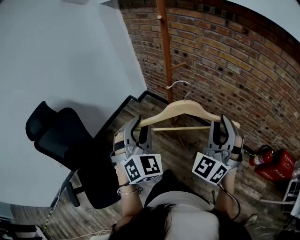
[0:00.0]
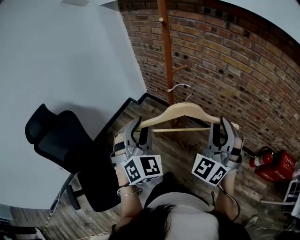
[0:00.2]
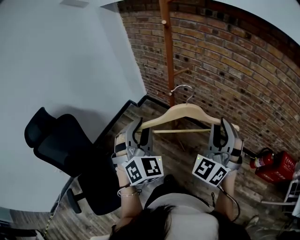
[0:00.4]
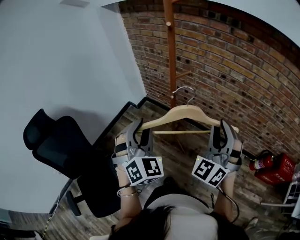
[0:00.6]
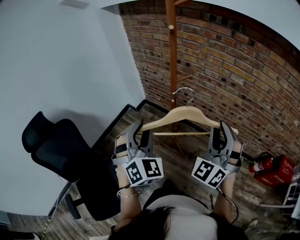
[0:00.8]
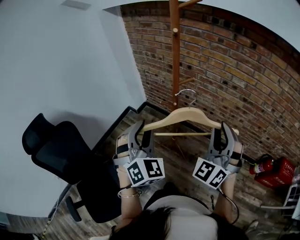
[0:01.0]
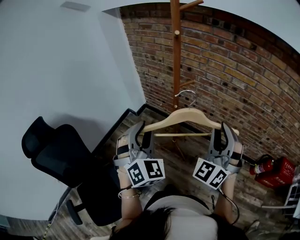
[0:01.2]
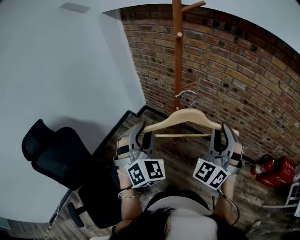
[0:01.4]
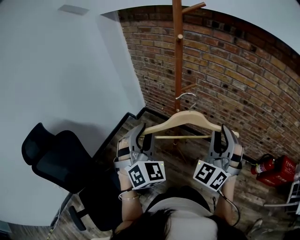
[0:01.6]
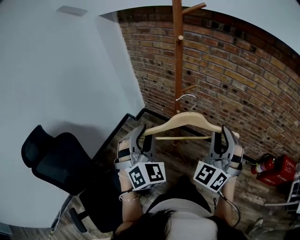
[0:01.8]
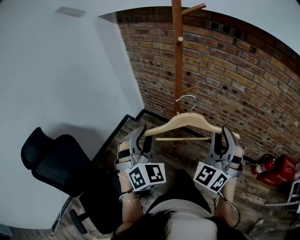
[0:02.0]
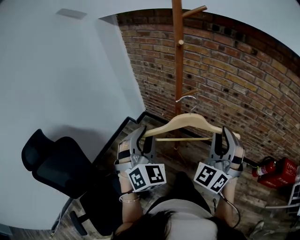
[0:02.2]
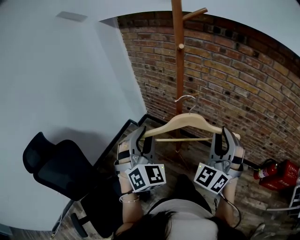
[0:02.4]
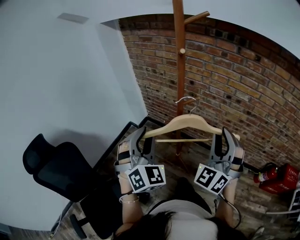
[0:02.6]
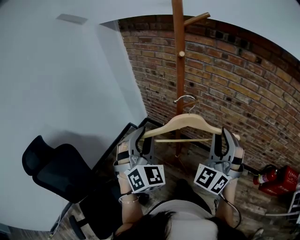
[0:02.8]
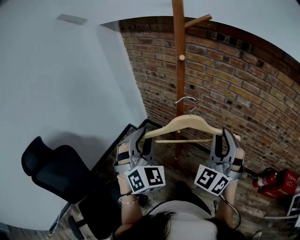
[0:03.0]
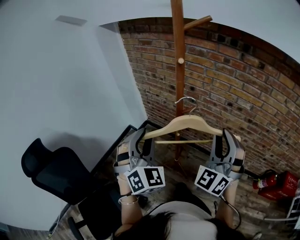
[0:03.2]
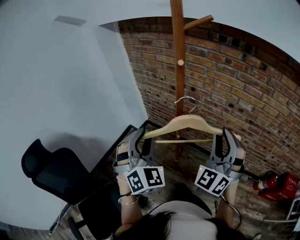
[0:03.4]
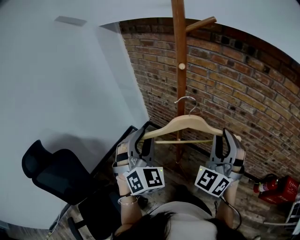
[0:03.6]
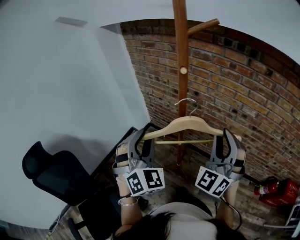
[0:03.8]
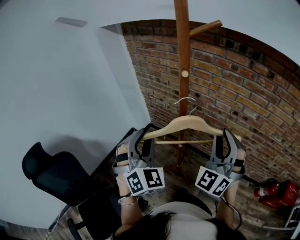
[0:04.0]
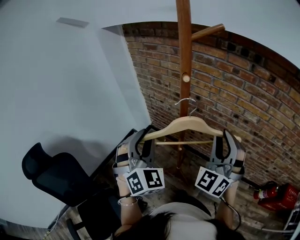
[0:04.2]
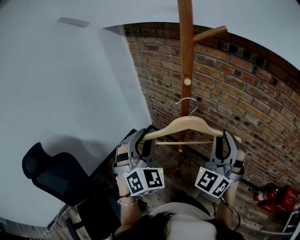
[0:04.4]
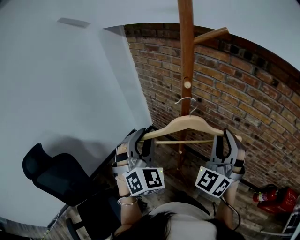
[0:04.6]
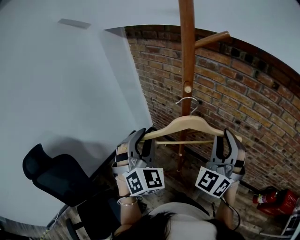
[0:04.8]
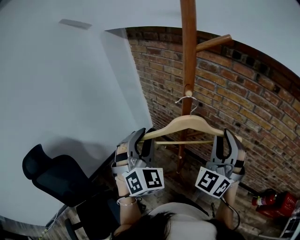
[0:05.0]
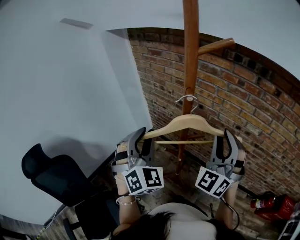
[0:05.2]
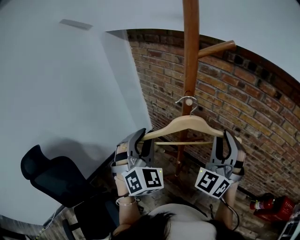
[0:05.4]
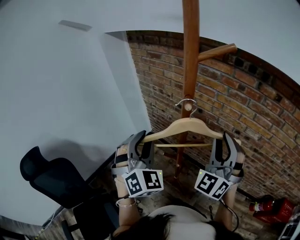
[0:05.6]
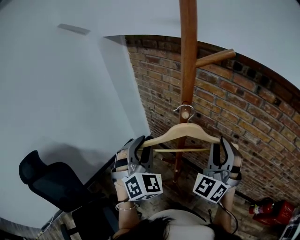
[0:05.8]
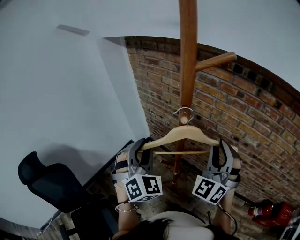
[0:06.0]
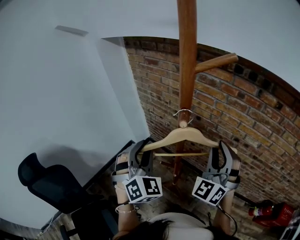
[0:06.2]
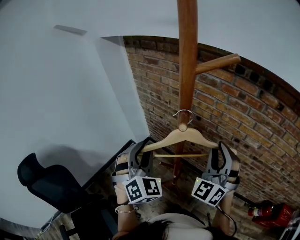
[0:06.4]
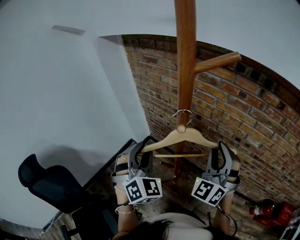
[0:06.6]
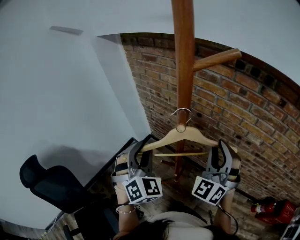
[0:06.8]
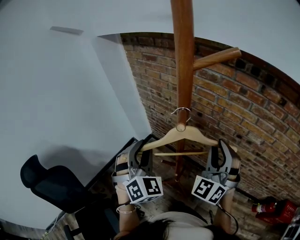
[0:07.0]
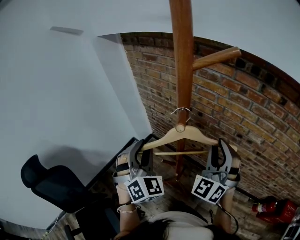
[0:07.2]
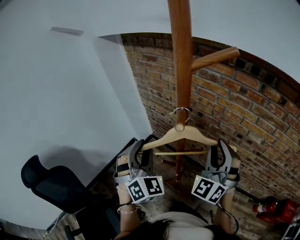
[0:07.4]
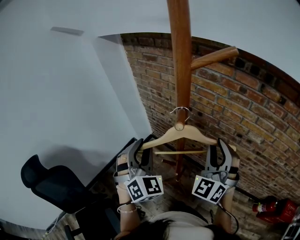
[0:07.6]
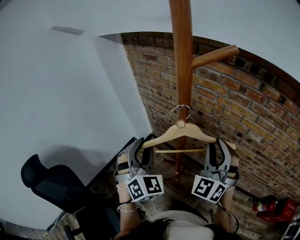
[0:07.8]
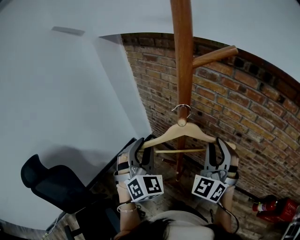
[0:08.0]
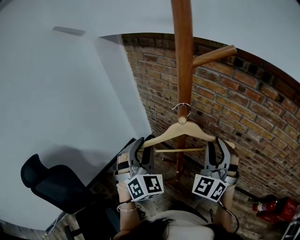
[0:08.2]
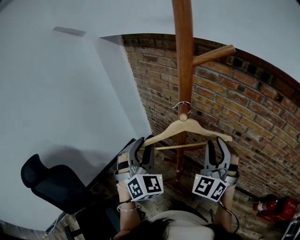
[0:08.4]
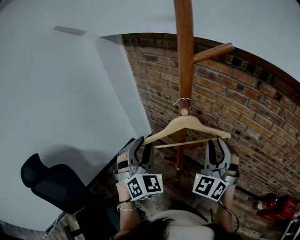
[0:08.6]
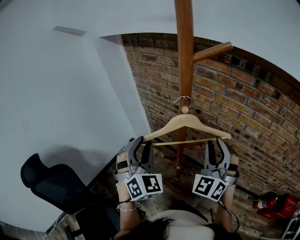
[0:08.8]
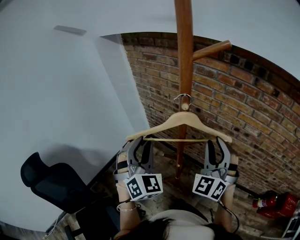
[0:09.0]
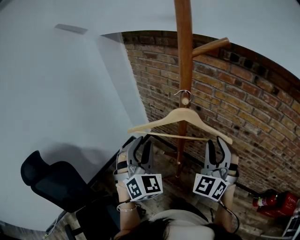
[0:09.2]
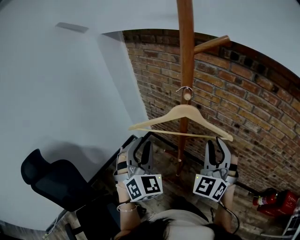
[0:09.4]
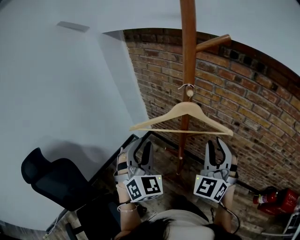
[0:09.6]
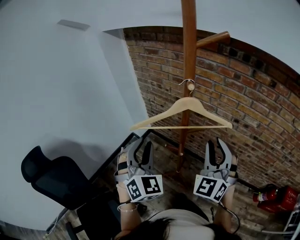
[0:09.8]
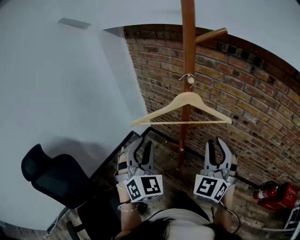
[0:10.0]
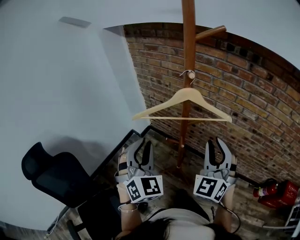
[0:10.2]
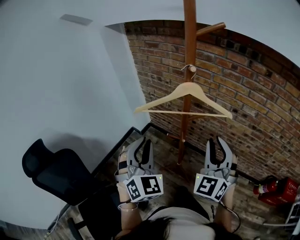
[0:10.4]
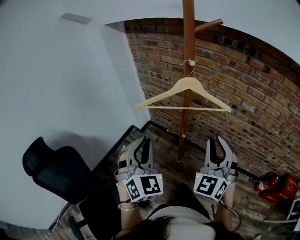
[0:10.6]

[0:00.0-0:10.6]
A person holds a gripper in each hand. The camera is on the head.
0:00.0 to 0:01.6: The left gripper moves forward and to the left, about 10 cm, while the right gripper heads to the left and forward, covering approximately 10 cm.
0:01.6 to 0:03.0: The grippers both shift forward by some 10 cm.
0:03.0 to 0:04.6: Both grippers move forward, roughly 10 cm.
0:04.6 to 0:06.0: Both grippers travel together forward, about 5 cm.
0:06.0 to 0:09.0: There are only small adjustments of the grippers.
0:09.0 to 0:10.6: The grippers both shift backward by some 15 cm.

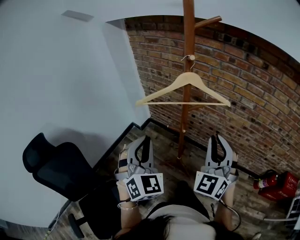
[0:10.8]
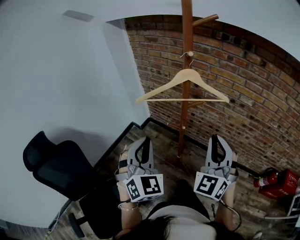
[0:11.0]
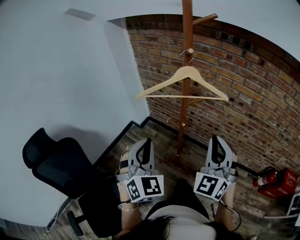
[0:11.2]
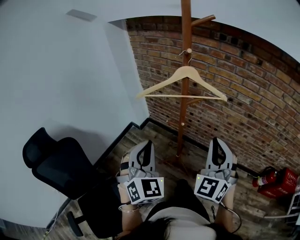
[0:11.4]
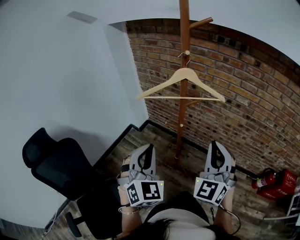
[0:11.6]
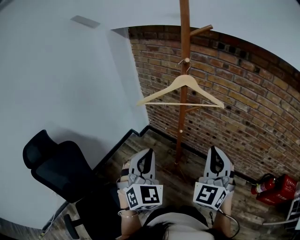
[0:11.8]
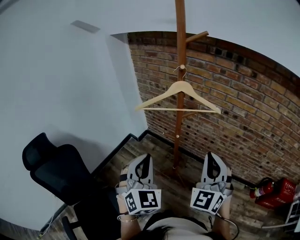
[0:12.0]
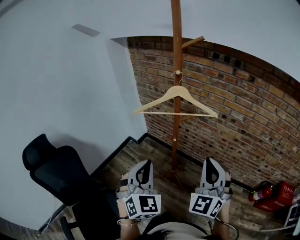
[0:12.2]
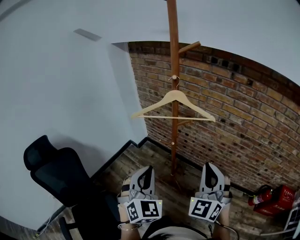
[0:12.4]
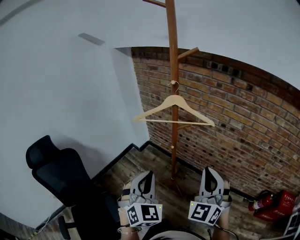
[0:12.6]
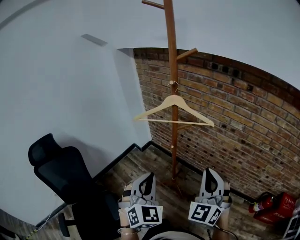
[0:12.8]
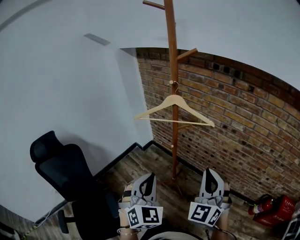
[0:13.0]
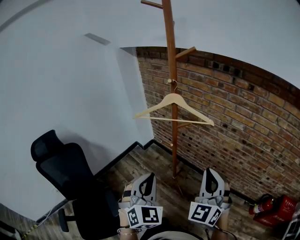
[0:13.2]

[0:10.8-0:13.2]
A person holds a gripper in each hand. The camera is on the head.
0:10.8 to 0:12.0: The grippers both shift backward by about 5 cm.
0:12.0 to 0:13.2: The left gripper travels to the right and backward by approximately 10 cm. Meanwhile the right gripper goes some 5 cm to the right.

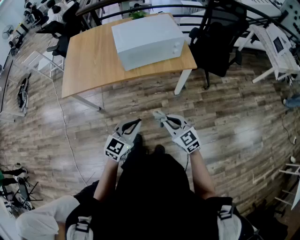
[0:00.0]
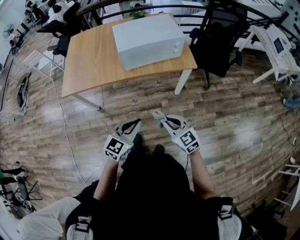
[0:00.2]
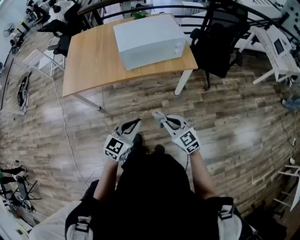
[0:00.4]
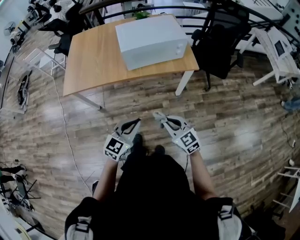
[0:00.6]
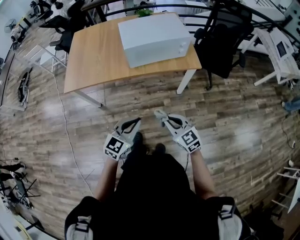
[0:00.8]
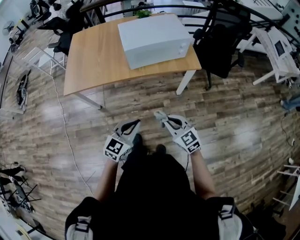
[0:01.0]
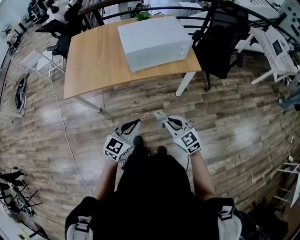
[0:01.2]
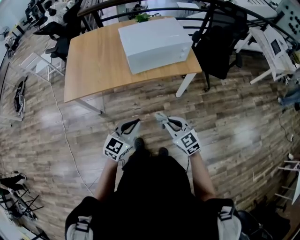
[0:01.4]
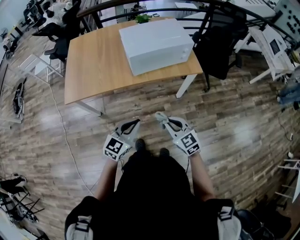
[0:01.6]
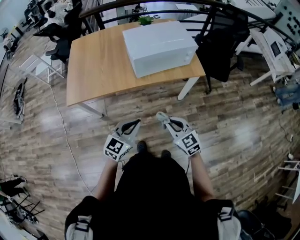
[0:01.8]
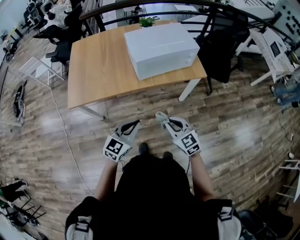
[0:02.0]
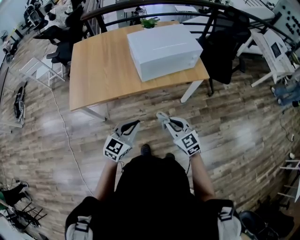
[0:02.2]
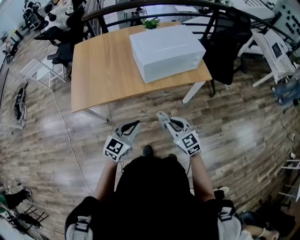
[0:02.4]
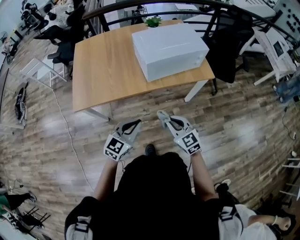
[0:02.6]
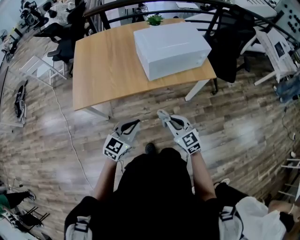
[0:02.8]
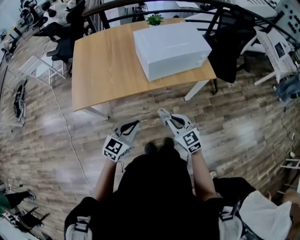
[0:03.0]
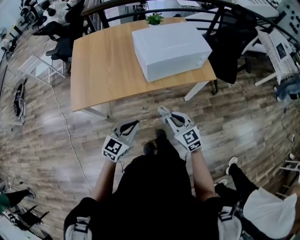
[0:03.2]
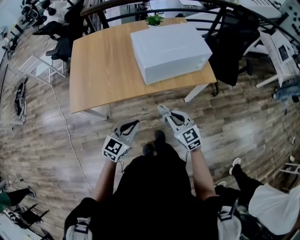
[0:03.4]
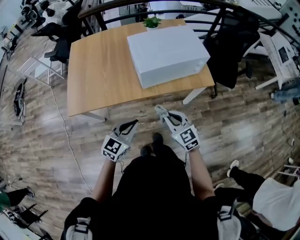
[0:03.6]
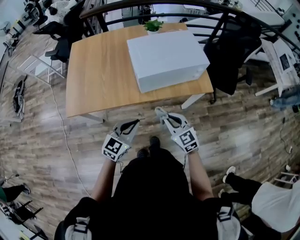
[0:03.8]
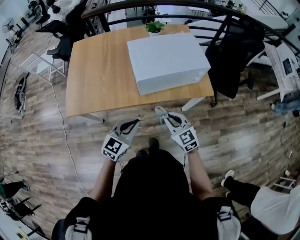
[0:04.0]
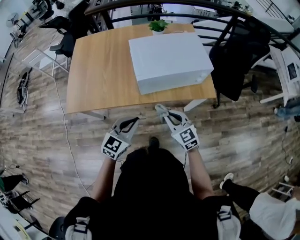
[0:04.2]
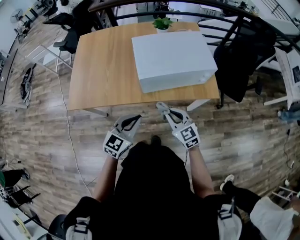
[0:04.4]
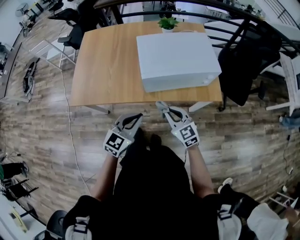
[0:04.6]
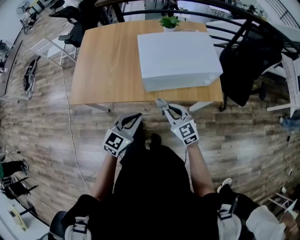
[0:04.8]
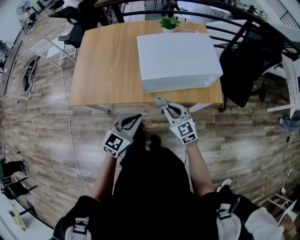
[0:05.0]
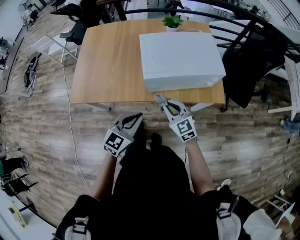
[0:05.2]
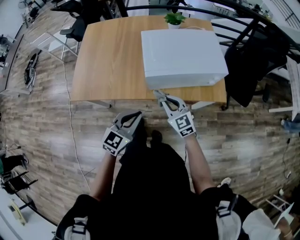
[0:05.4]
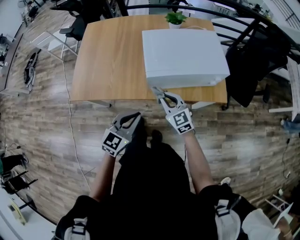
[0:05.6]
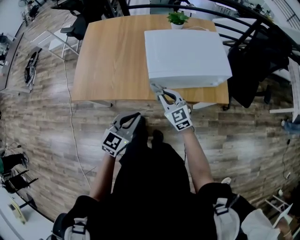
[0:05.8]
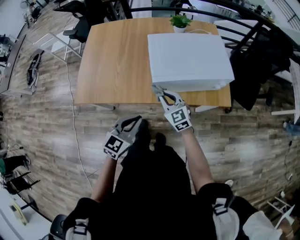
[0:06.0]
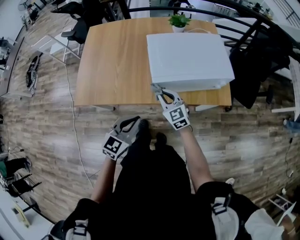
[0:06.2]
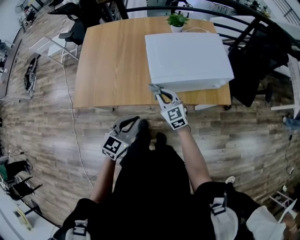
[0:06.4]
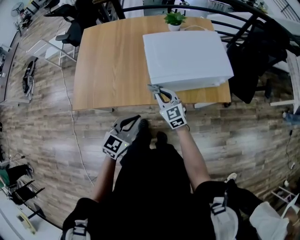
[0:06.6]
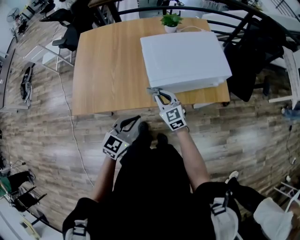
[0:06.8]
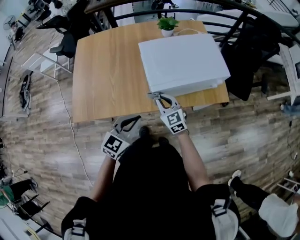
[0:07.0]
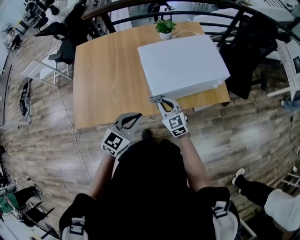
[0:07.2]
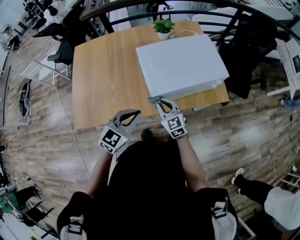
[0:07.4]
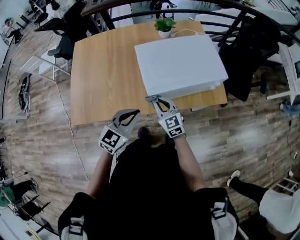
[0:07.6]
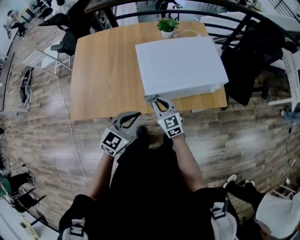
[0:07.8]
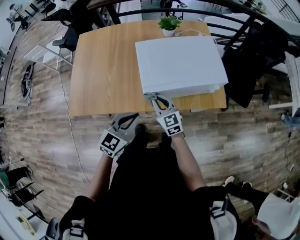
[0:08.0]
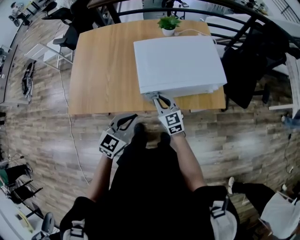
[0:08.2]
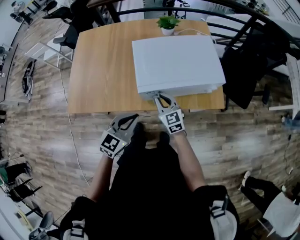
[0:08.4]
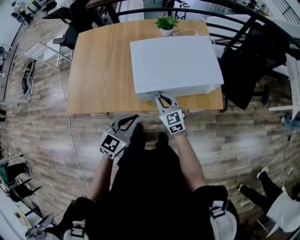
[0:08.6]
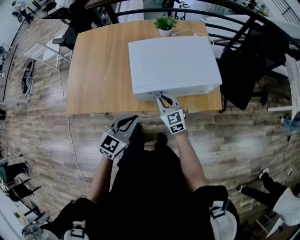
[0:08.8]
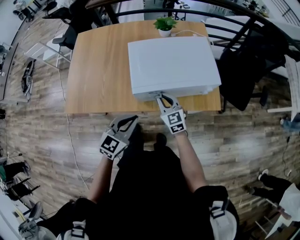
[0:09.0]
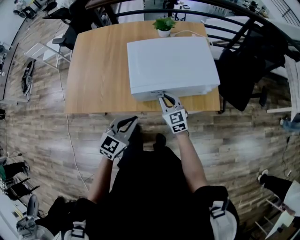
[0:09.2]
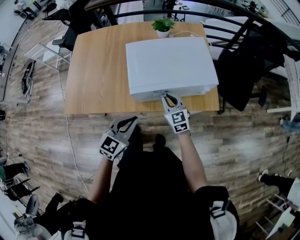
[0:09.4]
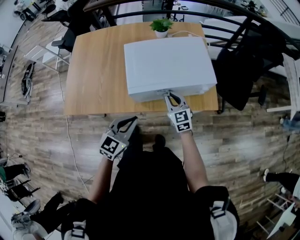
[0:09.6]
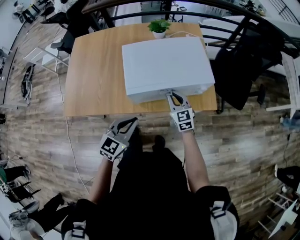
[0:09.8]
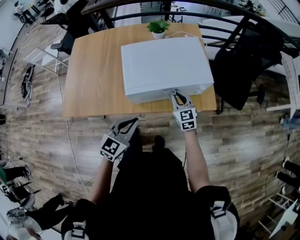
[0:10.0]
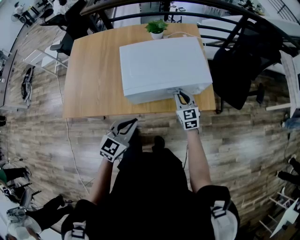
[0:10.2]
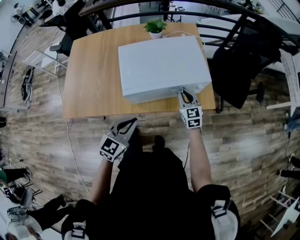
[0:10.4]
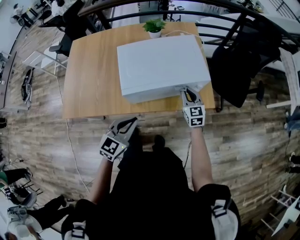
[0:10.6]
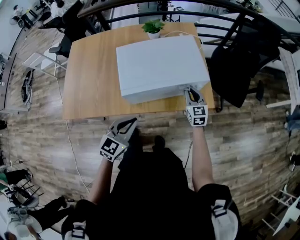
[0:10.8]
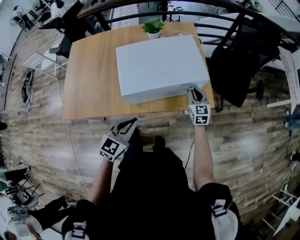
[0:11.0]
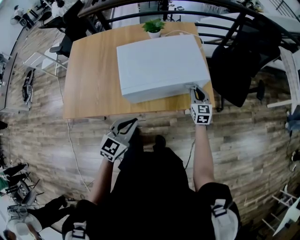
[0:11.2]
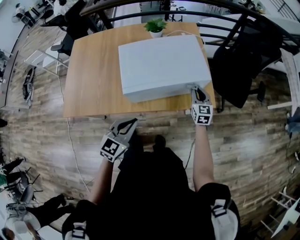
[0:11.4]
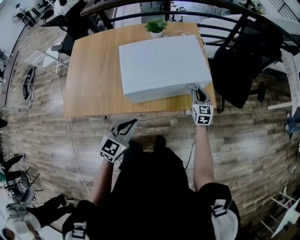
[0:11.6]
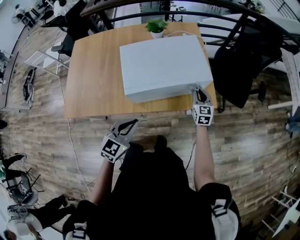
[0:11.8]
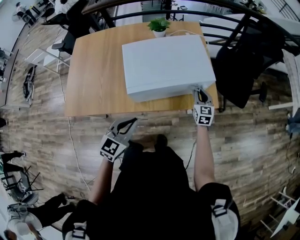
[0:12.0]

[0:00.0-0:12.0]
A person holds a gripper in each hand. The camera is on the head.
0:00.0 to 0:01.6: Both grippers travel together to the left, roughly 10 cm.
0:01.6 to 0:03.0: The two grippers go about 15 cm to the left and forward.
0:03.0 to 0:04.4: Both grippers move forward and to the right, roughly 15 cm.
0:04.4 to 0:06.0: The right gripper shifts some 15 cm forward and to the left. The left gripper goes about 5 cm to the left.
0:06.0 to 0:07.6: The left gripper moves forward, approximately 10 cm.
0:07.6 to 0:09.0: The two grippers go some 10 cm to the right.
0:09.0 to 0:10.4: The right gripper travels to the right by roughly 15 cm.
0:10.4 to 0:12.0: The right gripper heads to the right, covering roughly 10 cm.
